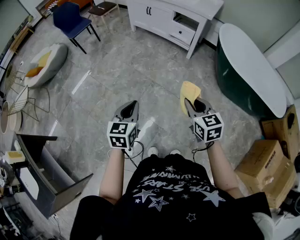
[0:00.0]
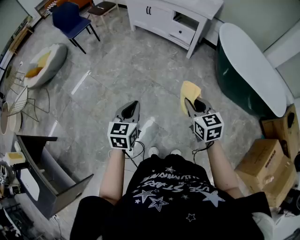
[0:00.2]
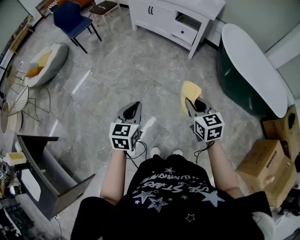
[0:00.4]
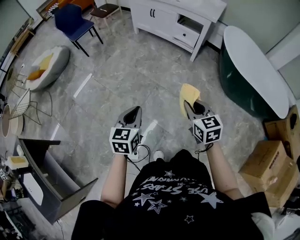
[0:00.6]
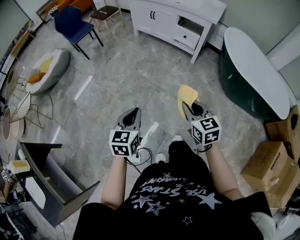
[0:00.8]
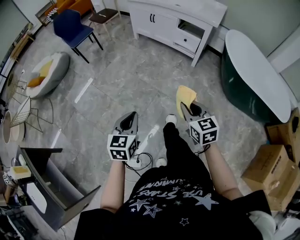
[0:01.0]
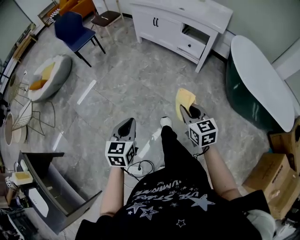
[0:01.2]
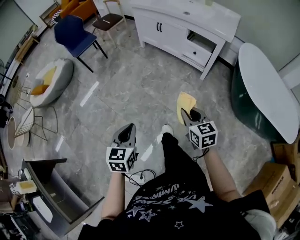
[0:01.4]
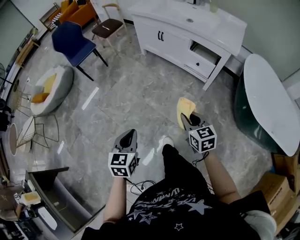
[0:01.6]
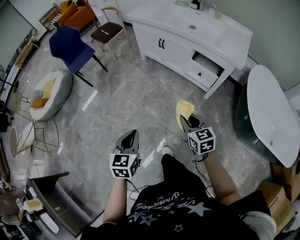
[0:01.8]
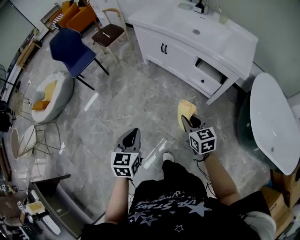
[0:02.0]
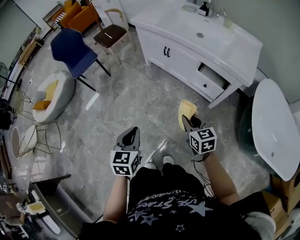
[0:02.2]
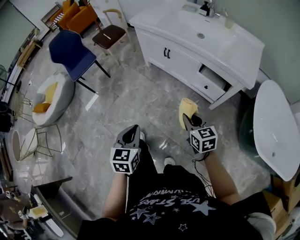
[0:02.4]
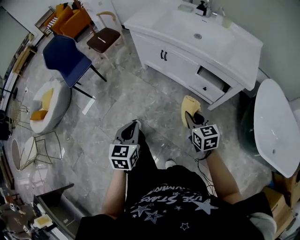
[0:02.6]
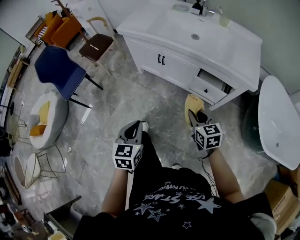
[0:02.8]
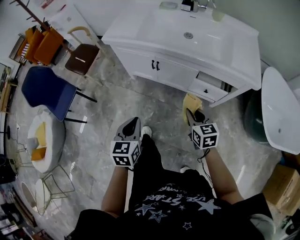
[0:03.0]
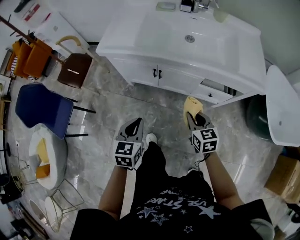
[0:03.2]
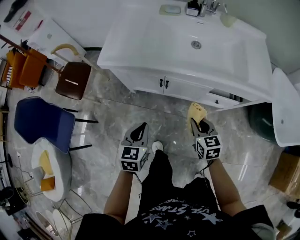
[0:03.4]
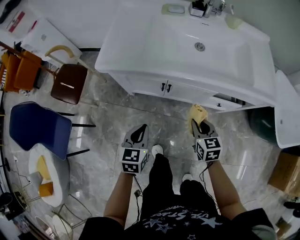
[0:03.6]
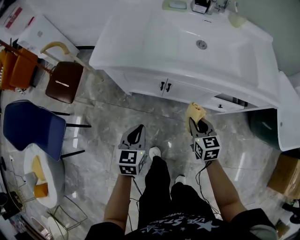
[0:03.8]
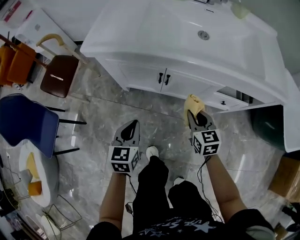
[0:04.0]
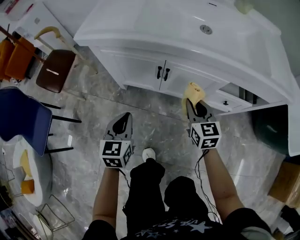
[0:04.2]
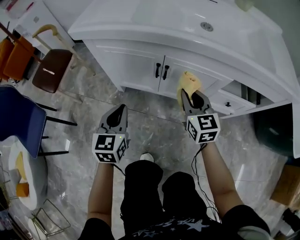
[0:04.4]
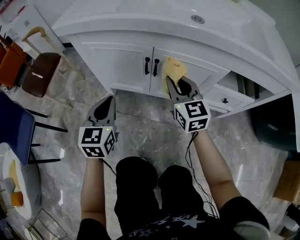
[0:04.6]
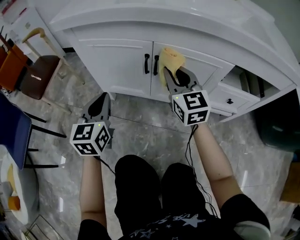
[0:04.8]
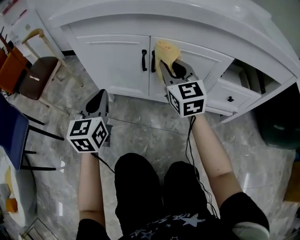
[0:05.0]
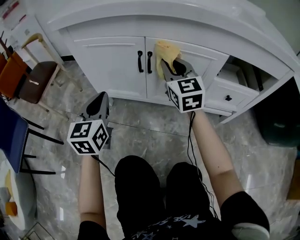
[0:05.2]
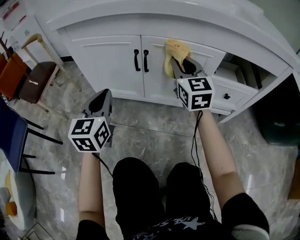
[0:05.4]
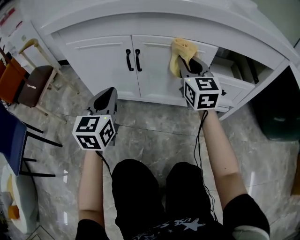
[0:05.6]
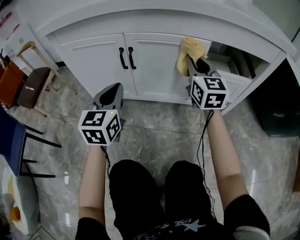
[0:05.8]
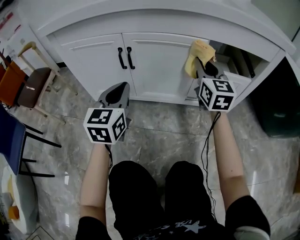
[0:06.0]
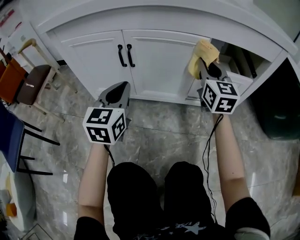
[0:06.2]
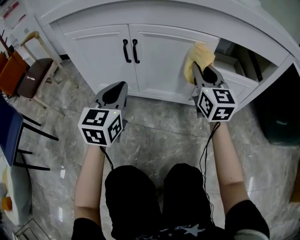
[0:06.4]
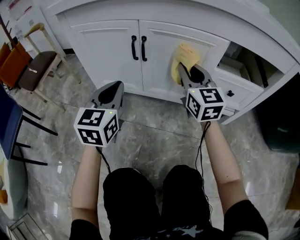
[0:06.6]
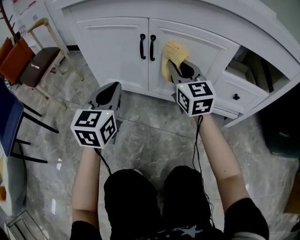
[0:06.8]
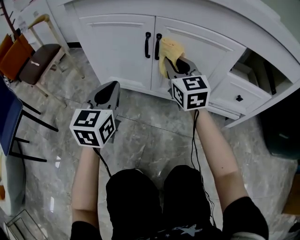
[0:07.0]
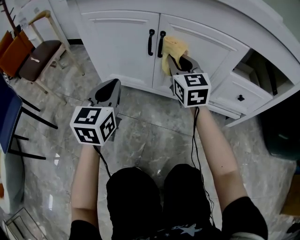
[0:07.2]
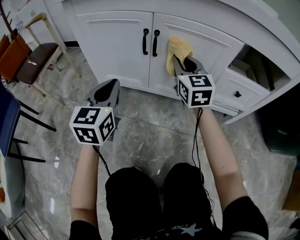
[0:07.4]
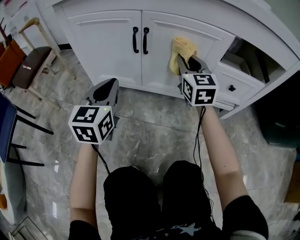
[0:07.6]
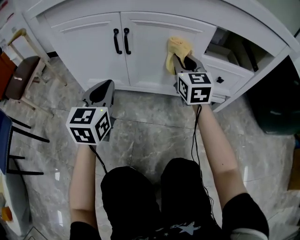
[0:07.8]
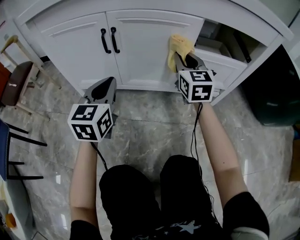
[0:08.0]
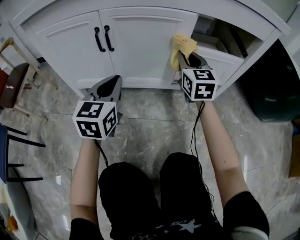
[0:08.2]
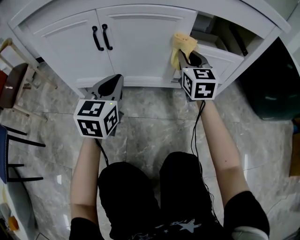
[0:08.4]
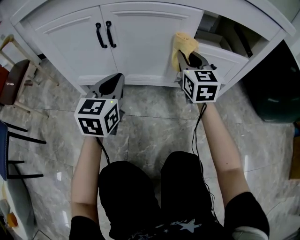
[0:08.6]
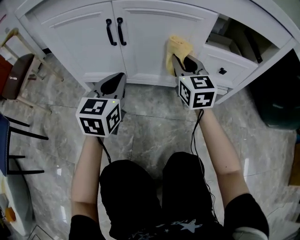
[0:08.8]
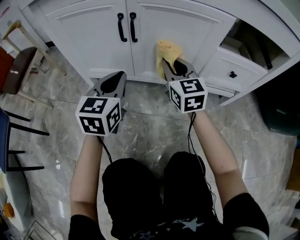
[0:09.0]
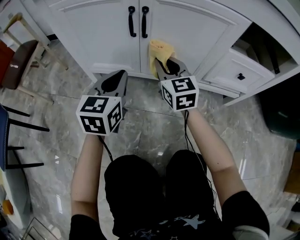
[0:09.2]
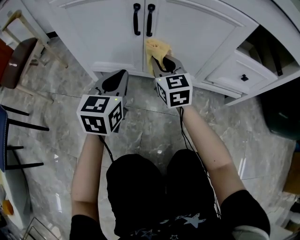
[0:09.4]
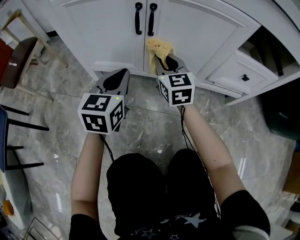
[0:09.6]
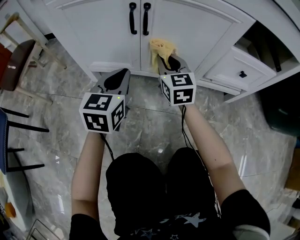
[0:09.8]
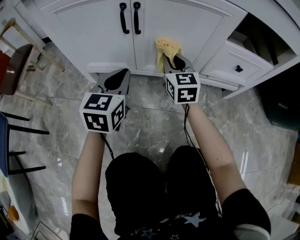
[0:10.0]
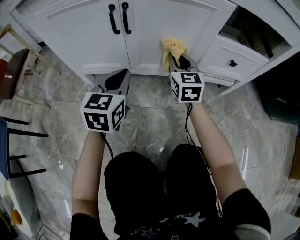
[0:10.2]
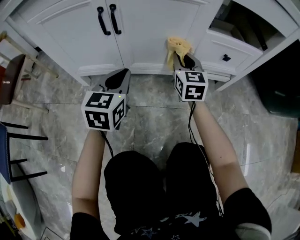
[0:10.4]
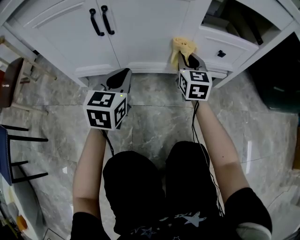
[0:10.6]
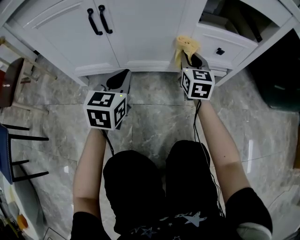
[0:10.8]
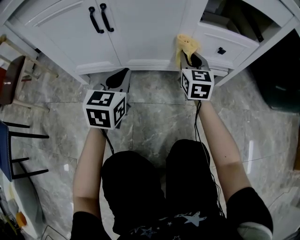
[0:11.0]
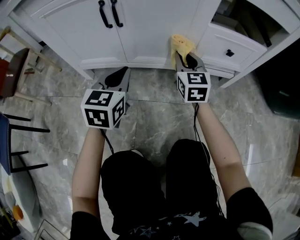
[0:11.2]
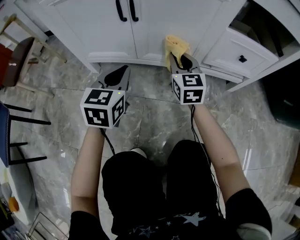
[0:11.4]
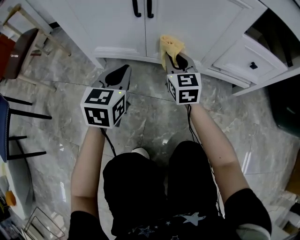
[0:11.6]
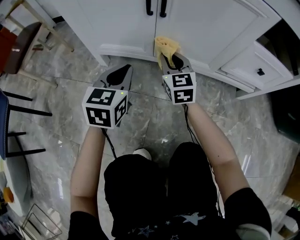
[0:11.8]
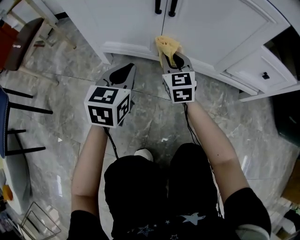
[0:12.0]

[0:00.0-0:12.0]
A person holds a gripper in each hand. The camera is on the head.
0:00.0 to 0:01.6: Both grippers travel together forward, about 35 cm.
0:01.6 to 0:03.0: The pair of grippers is taken forward, approximately 50 cm. The right gripper changes its angle by roughly 20 degrees.
0:03.0 to 0:04.4: The left gripper moves downward, forward and to the left, roughly 35 cm. Meanwhile the right gripper is displaced forward, downward and to the left by some 30 cm, and rotates approximately 20 degrees.
0:04.4 to 0:06.0: The right gripper goes some 20 cm to the right, and changes its angle by about 20 degrees, while the left gripper shifts approximately 15 cm to the right and downward.
0:06.0 to 0:07.6: The two grippers go about 10 cm to the left and downward.
0:07.6 to 0:09.0: The grippers both shift downward by roughly 5 cm. The right gripper travels to the right and back again, approximately 15 cm each way.
0:09.0 to 0:10.4: The left gripper heads to the right, covering about 5 cm; the right gripper is displaced to the right and downward by approximately 10 cm.
0:10.4 to 0:12.0: The left gripper shifts some 15 cm to the left and downward; the right gripper moves to the left, about 20 cm.

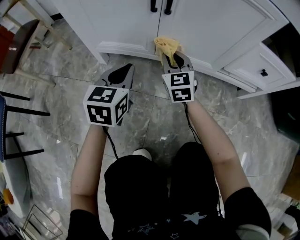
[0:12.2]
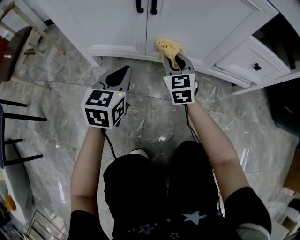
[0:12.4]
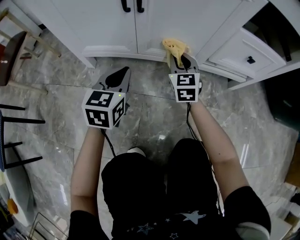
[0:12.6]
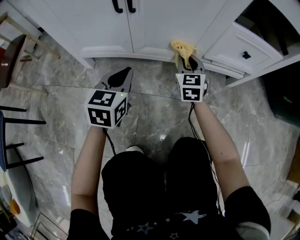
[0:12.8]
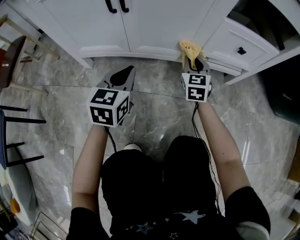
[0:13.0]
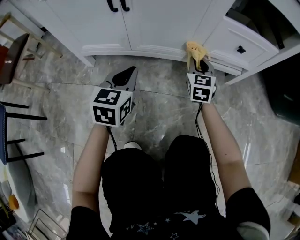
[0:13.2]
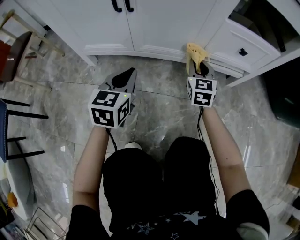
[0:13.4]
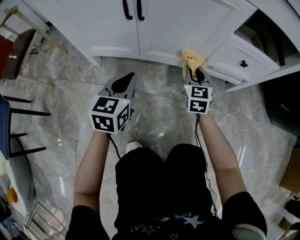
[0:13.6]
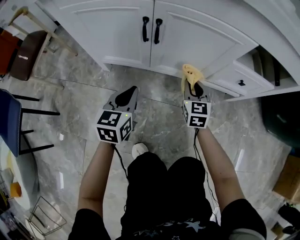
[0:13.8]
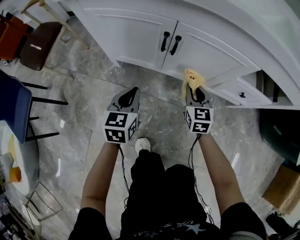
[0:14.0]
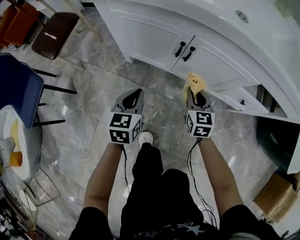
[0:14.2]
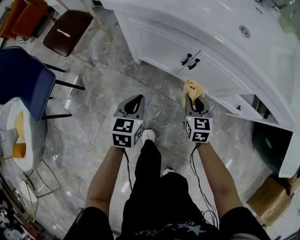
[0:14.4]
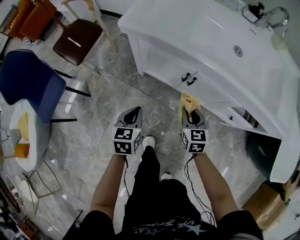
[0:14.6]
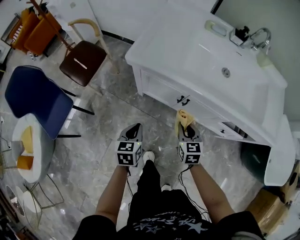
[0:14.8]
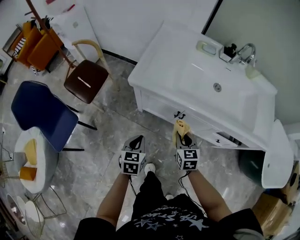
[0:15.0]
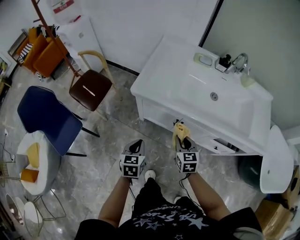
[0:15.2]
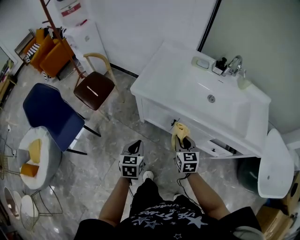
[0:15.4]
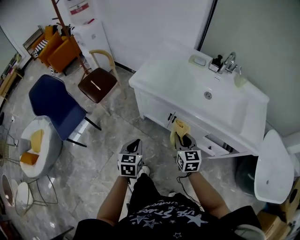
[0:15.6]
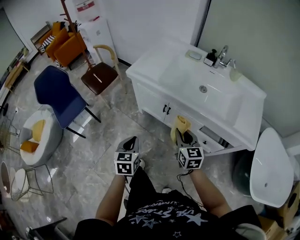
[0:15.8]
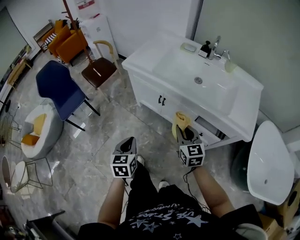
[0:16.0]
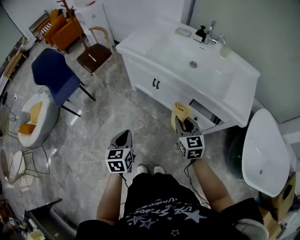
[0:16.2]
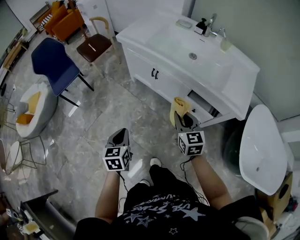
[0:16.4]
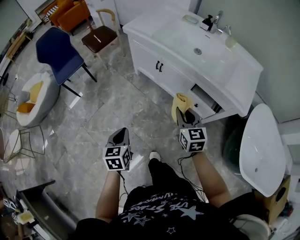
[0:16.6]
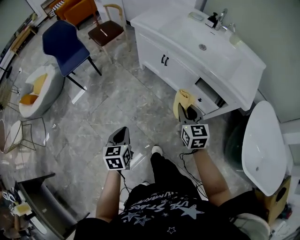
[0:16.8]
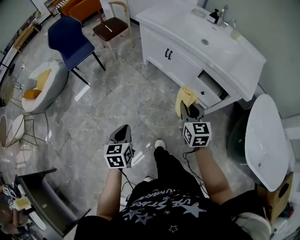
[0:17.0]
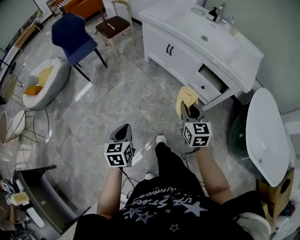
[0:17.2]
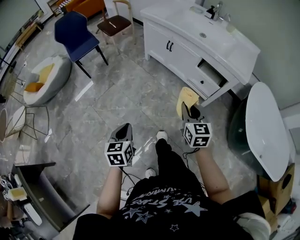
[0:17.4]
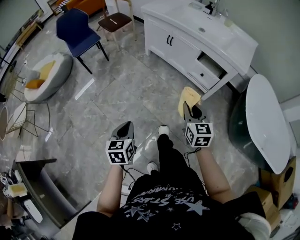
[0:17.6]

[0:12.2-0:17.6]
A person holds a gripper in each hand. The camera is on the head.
0:12.2 to 0:13.6: The right gripper shifts approximately 20 cm to the right. The left gripper is displaced to the right by approximately 10 cm.
0:13.6 to 0:15.0: The two grippers go approximately 50 cm upward and to the left. The left gripper turns by roughly 30 degrees, while the right gripper turns by about 30 degrees.
0:15.0 to 0:16.2: The two grippers go roughly 35 cm backward, to the right and upward. The left gripper changes its angle by approximately 20 degrees; the right gripper swivels about 20 degrees.
0:16.2 to 0:17.6: Both grippers move backward, roughly 40 cm.

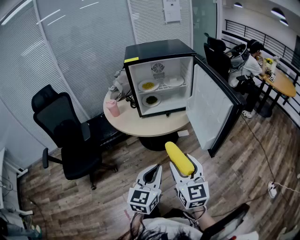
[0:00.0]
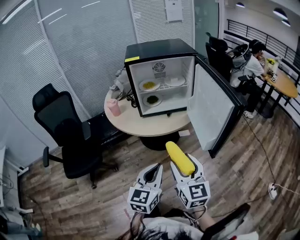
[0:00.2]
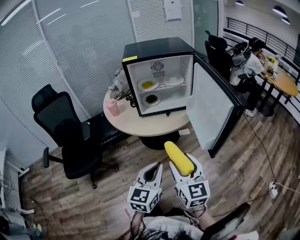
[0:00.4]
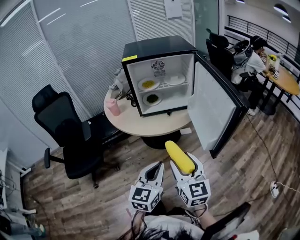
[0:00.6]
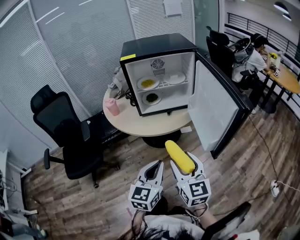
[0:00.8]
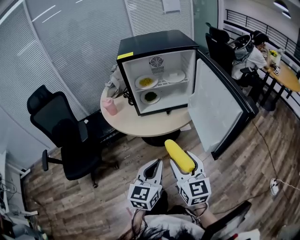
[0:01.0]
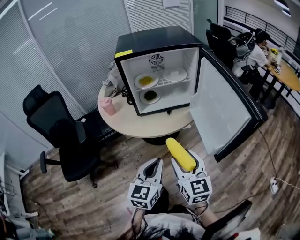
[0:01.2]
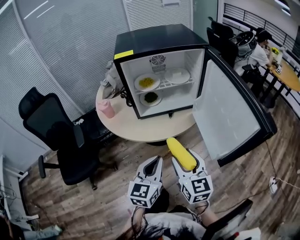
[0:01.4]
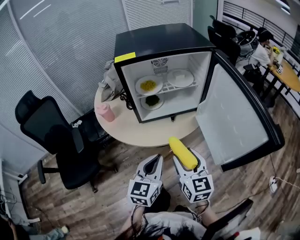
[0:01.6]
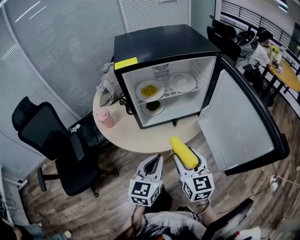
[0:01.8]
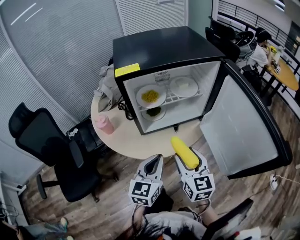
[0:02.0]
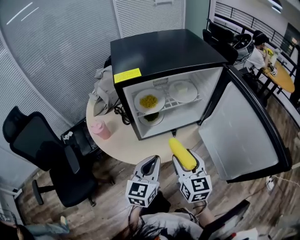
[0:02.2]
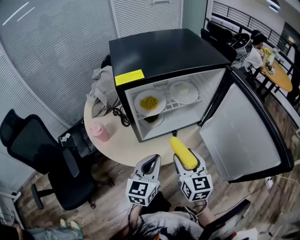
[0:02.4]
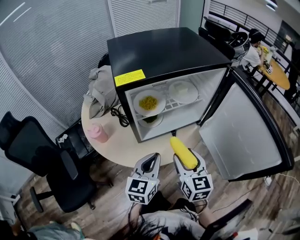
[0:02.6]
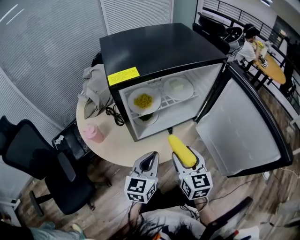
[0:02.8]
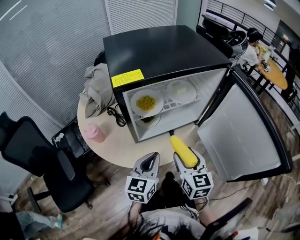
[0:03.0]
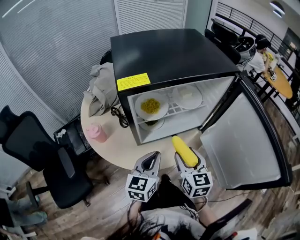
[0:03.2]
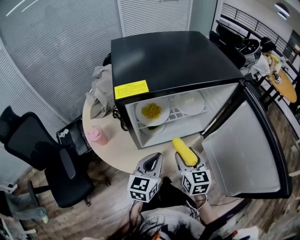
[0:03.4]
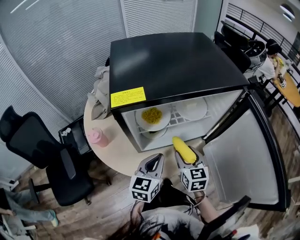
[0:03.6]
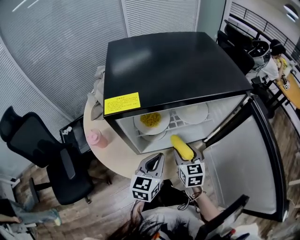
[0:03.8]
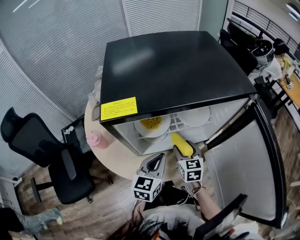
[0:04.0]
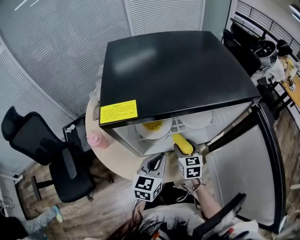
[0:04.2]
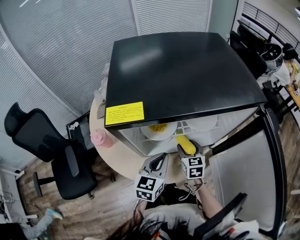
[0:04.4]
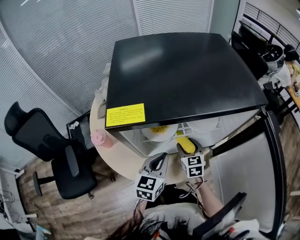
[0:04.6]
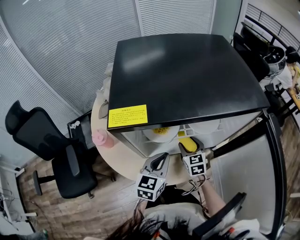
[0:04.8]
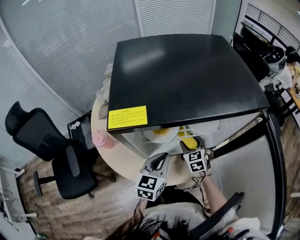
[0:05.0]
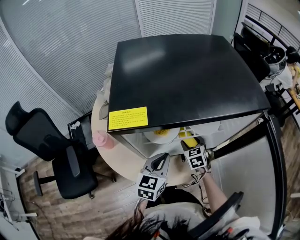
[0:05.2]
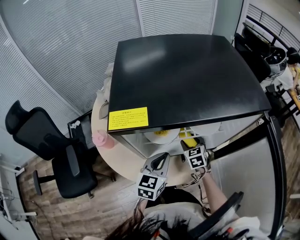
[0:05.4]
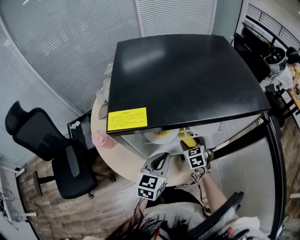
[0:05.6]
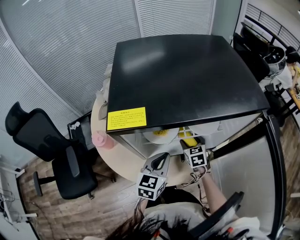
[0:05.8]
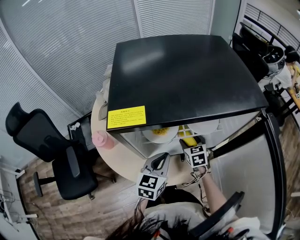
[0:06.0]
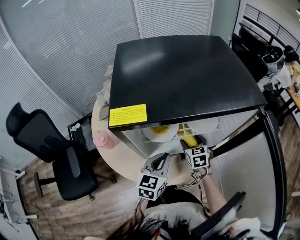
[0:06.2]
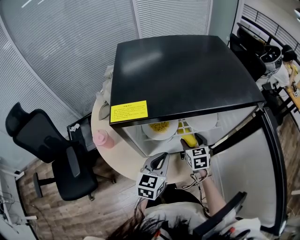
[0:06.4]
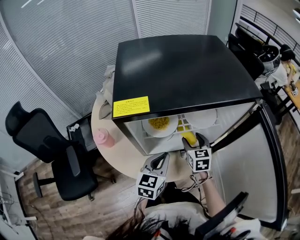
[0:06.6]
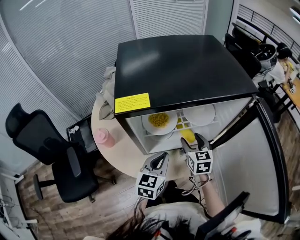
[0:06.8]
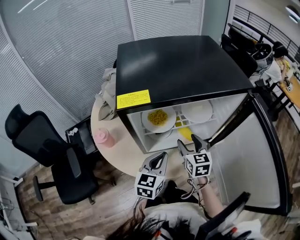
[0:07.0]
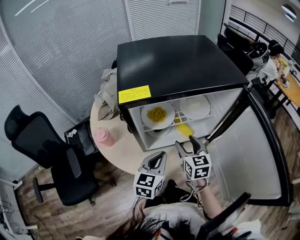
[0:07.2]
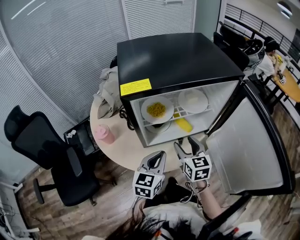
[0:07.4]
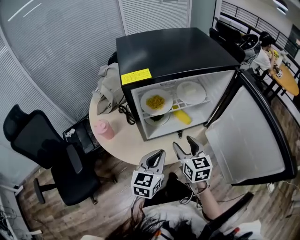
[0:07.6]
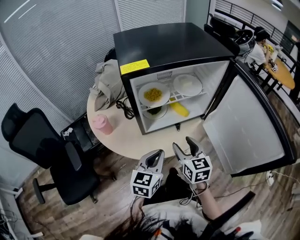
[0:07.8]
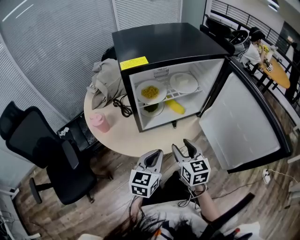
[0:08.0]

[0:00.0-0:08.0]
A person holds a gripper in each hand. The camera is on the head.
0:00.0 to 0:01.6: Both grippers travel together forward, some 20 cm.
0:01.6 to 0:03.2: The right gripper shifts roughly 15 cm forward; the left gripper goes approximately 15 cm forward and to the left.
0:03.2 to 0:04.8: The left gripper moves forward, approximately 10 cm. Meanwhile the right gripper shifts approximately 25 cm forward and downward, and turns by some 20 degrees.
0:04.8 to 0:06.4: The grippers move only a little.
0:06.4 to 0:08.0: The two grippers go some 20 cm backward.
